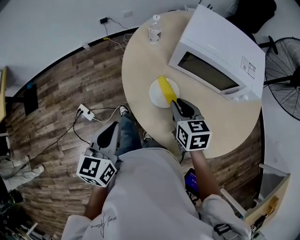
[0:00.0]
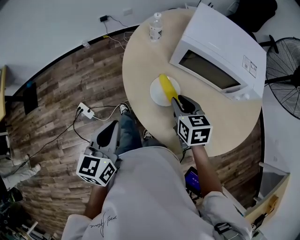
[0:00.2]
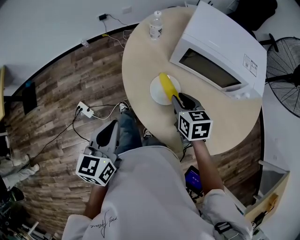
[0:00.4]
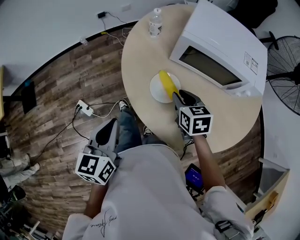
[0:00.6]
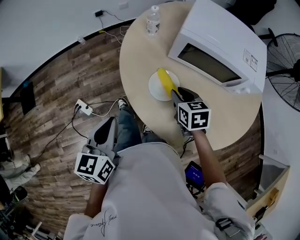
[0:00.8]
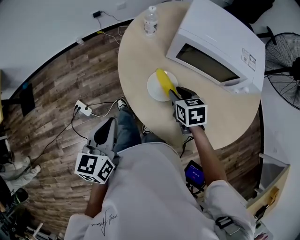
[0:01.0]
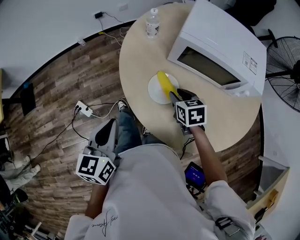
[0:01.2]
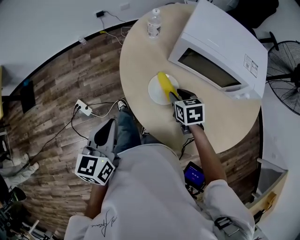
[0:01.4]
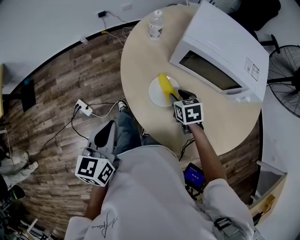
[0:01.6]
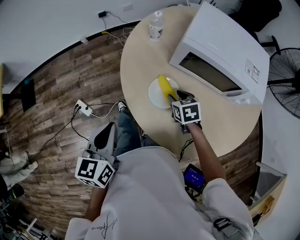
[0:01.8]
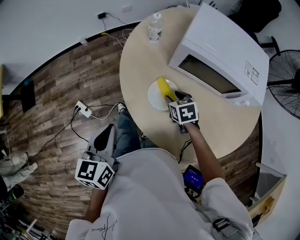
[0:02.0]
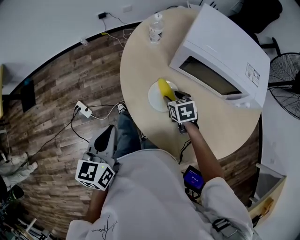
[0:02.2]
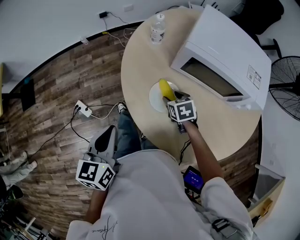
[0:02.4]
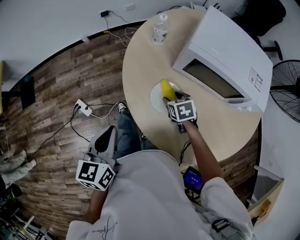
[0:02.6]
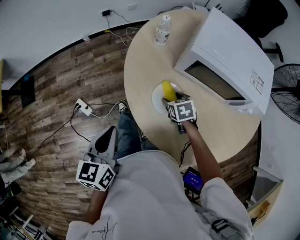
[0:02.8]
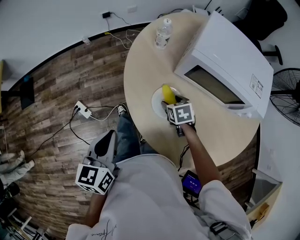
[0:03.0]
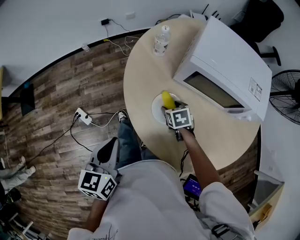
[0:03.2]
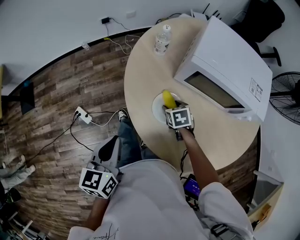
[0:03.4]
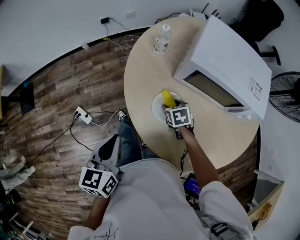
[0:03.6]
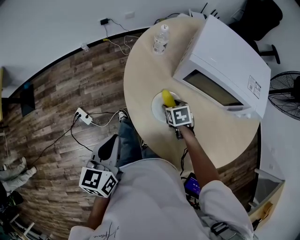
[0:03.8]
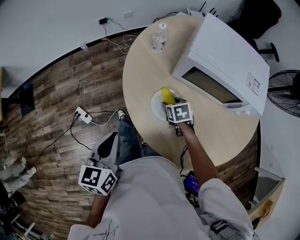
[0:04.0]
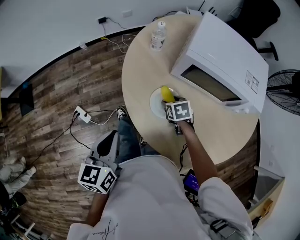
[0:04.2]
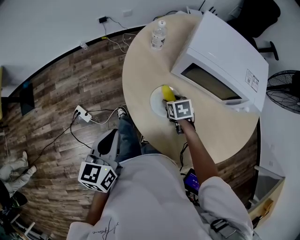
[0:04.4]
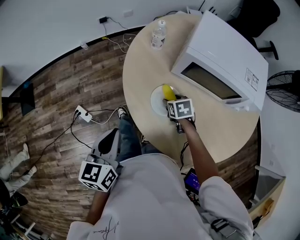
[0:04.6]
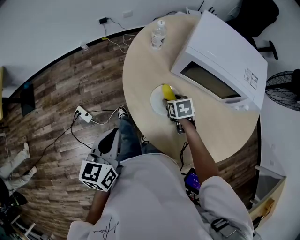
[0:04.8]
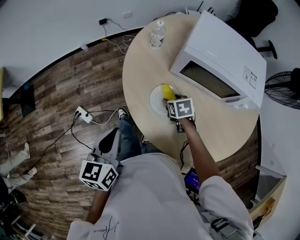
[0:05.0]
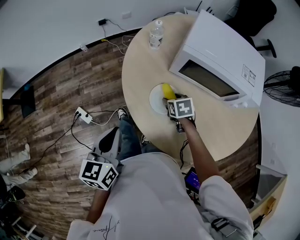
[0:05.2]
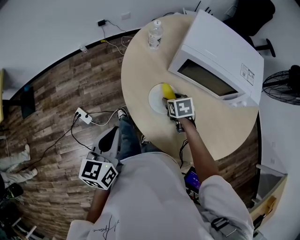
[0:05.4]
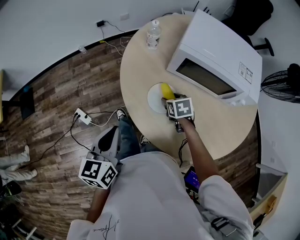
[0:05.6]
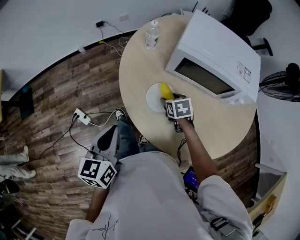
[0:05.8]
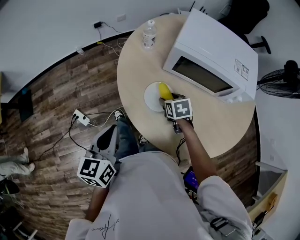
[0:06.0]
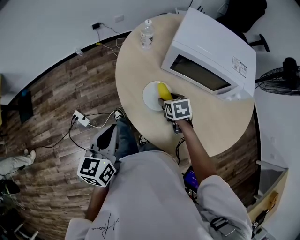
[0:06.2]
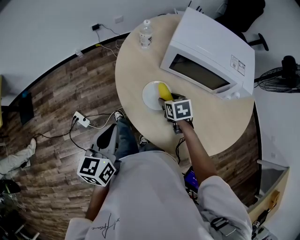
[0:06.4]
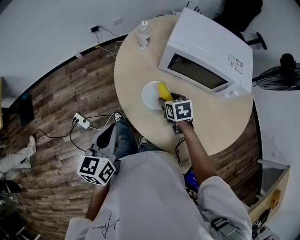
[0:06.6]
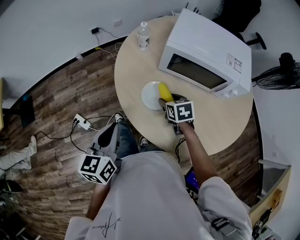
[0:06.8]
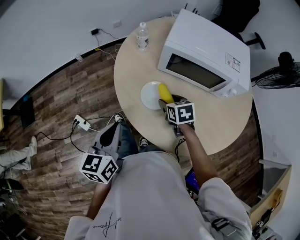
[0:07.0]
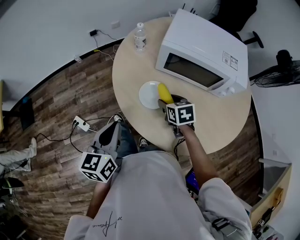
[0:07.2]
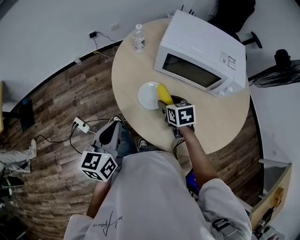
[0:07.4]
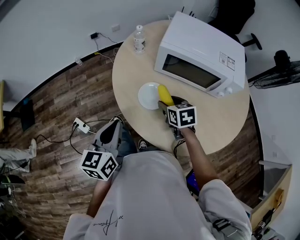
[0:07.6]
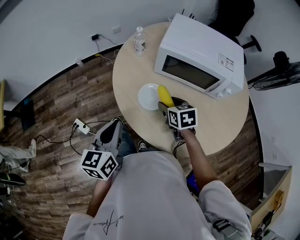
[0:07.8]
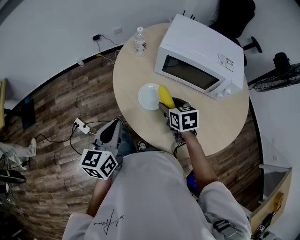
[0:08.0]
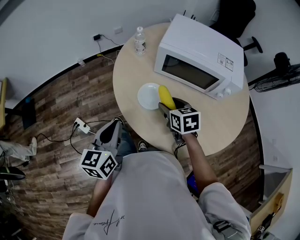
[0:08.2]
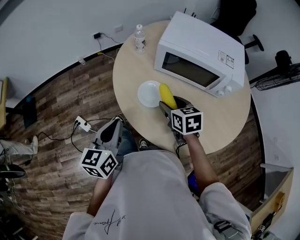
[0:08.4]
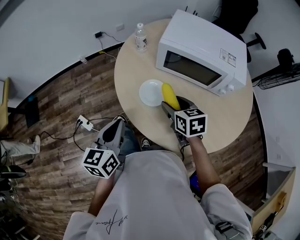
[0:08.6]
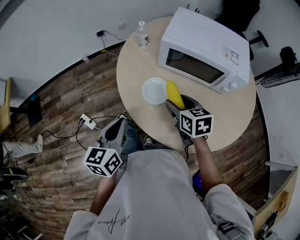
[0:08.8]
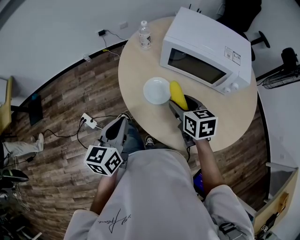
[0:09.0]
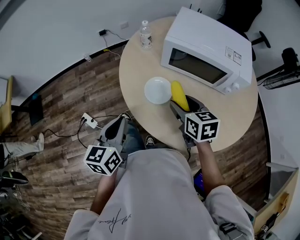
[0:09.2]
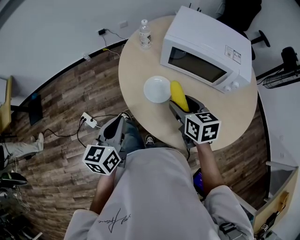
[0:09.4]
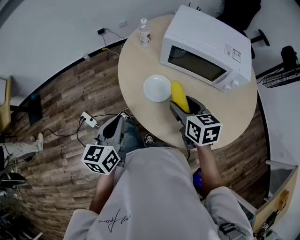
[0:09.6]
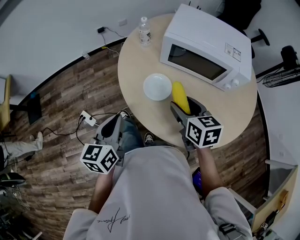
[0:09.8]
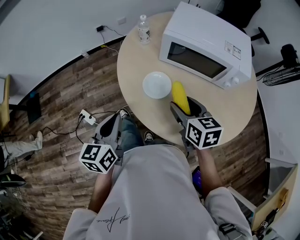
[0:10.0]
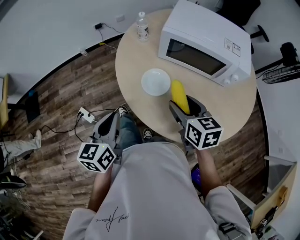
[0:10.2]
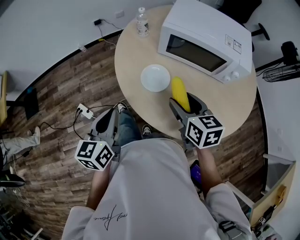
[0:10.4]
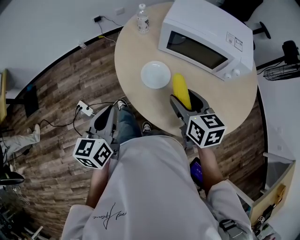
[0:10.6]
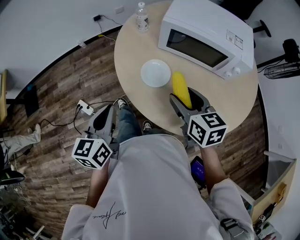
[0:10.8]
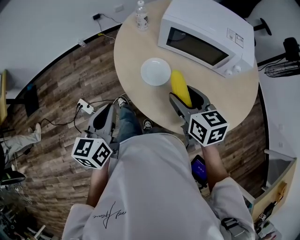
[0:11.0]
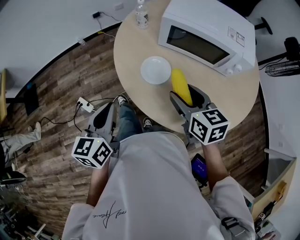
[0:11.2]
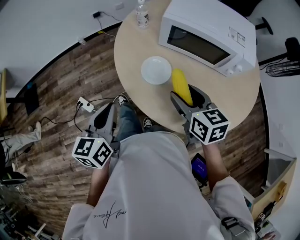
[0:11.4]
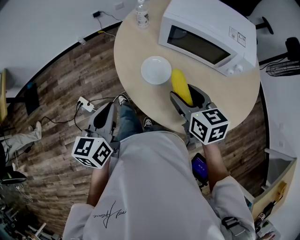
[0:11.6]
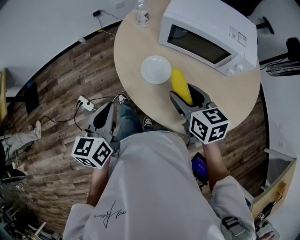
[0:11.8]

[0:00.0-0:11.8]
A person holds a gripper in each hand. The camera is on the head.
0:00.0 to 0:01.4: The right gripper shifts some 10 cm downward.
0:01.4 to 0:03.0: The right gripper shifts approximately 5 cm downward, and opens up.
0:03.0 to 0:04.4: Both grippers stay about where they are.
0:04.4 to 0:06.0: There are only small adjustments of the grippers.
0:06.0 to 0:07.4: The right gripper is displaced upward by roughly 5 cm.
0:07.4 to 0:08.8: The right gripper heads upward, covering about 5 cm.
0:08.8 to 0:10.4: The right gripper shifts about 5 cm backward.
0:10.4 to 0:11.8: Both grippers stay put.

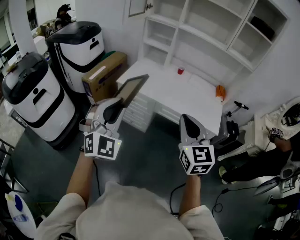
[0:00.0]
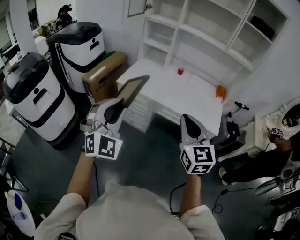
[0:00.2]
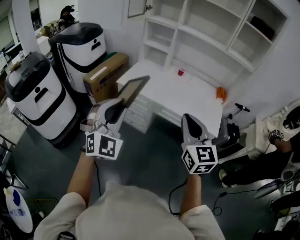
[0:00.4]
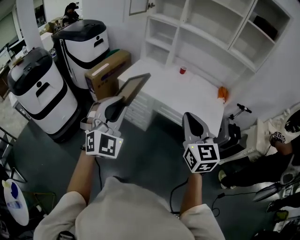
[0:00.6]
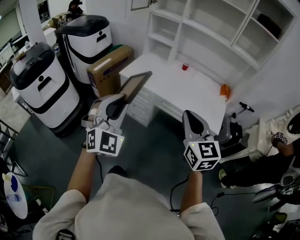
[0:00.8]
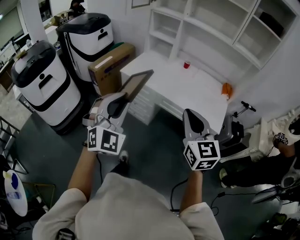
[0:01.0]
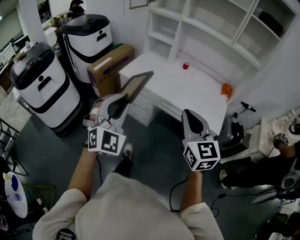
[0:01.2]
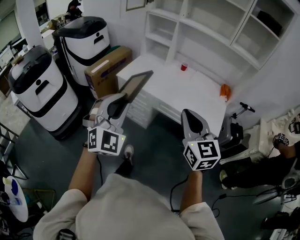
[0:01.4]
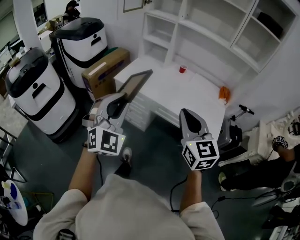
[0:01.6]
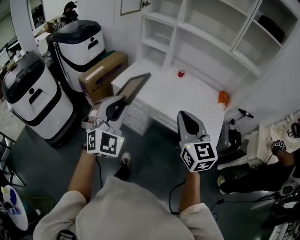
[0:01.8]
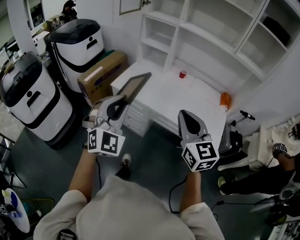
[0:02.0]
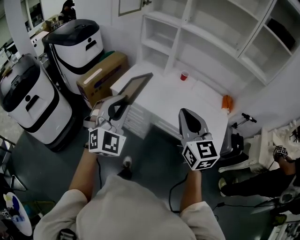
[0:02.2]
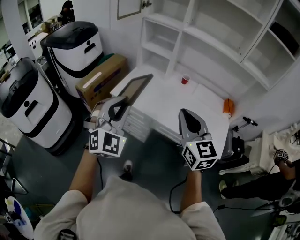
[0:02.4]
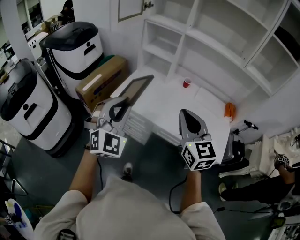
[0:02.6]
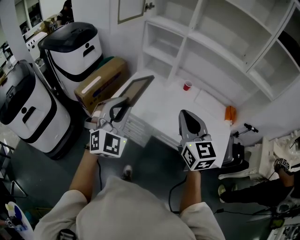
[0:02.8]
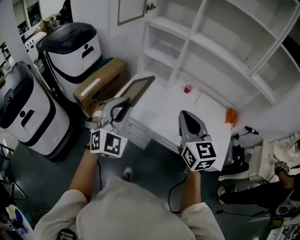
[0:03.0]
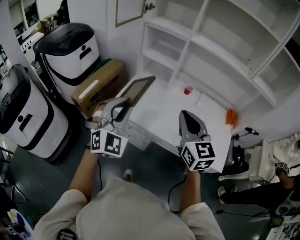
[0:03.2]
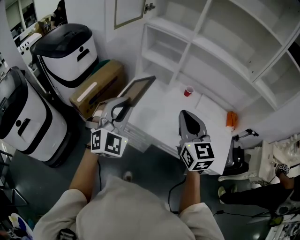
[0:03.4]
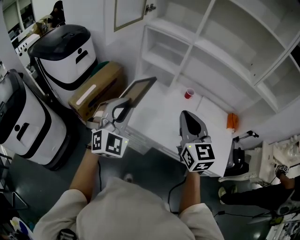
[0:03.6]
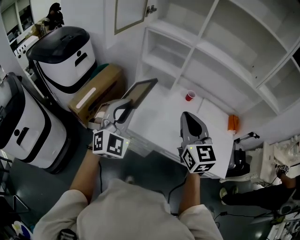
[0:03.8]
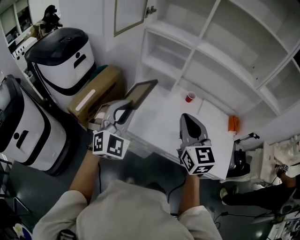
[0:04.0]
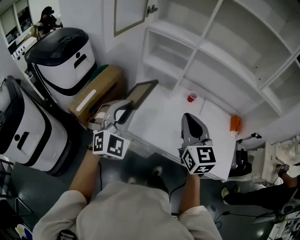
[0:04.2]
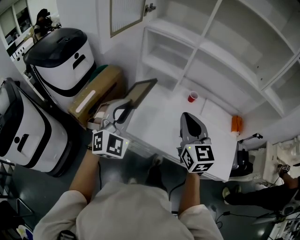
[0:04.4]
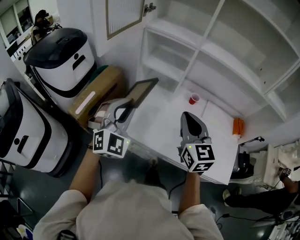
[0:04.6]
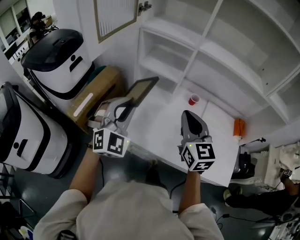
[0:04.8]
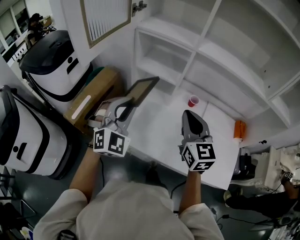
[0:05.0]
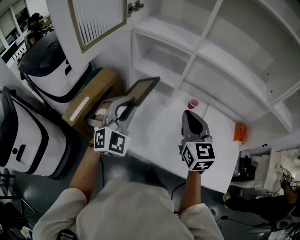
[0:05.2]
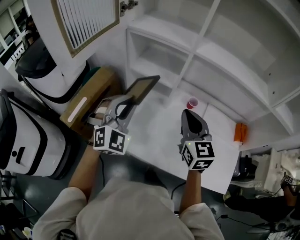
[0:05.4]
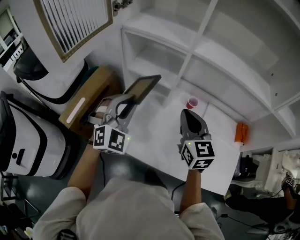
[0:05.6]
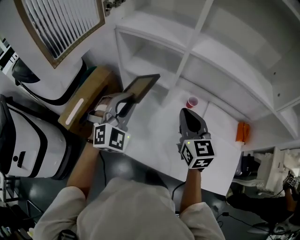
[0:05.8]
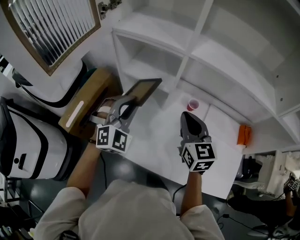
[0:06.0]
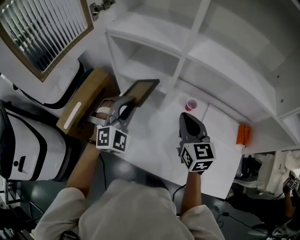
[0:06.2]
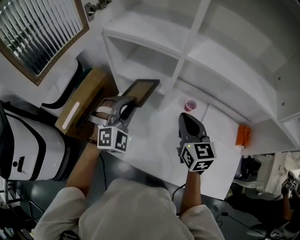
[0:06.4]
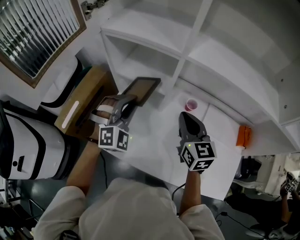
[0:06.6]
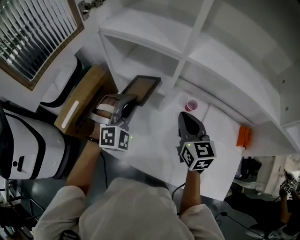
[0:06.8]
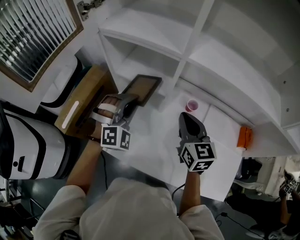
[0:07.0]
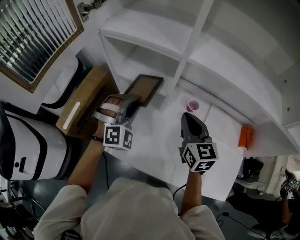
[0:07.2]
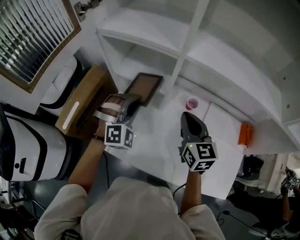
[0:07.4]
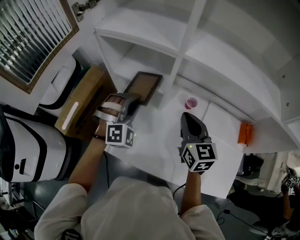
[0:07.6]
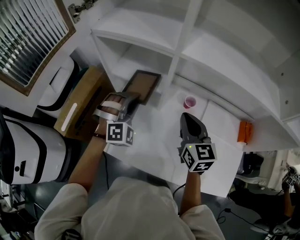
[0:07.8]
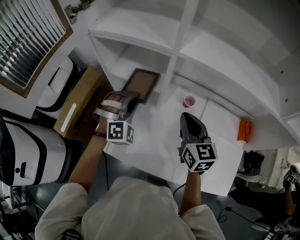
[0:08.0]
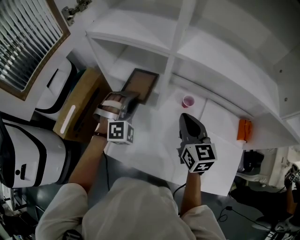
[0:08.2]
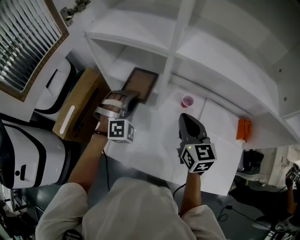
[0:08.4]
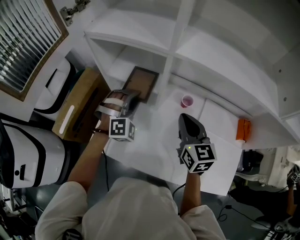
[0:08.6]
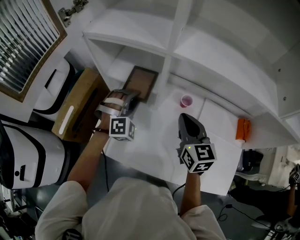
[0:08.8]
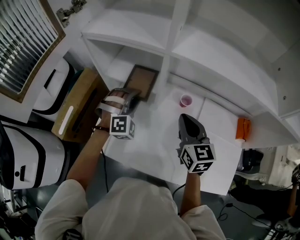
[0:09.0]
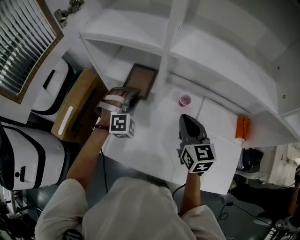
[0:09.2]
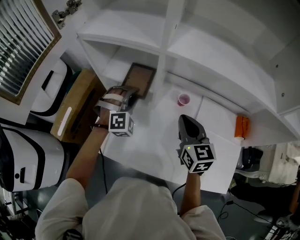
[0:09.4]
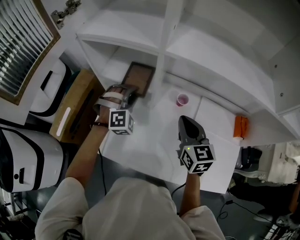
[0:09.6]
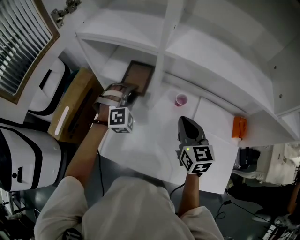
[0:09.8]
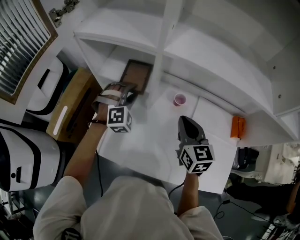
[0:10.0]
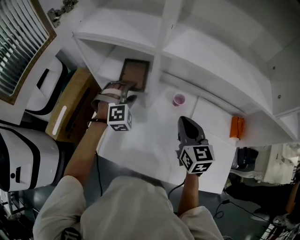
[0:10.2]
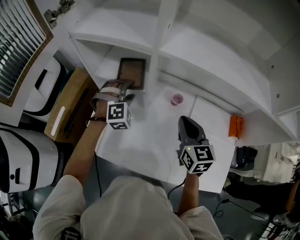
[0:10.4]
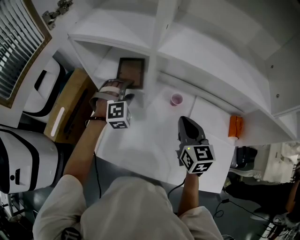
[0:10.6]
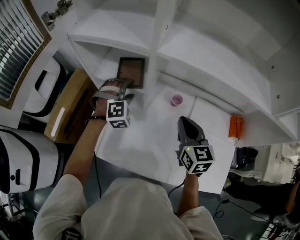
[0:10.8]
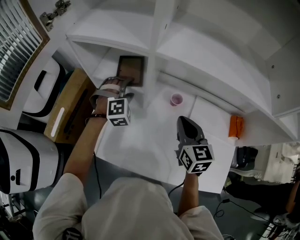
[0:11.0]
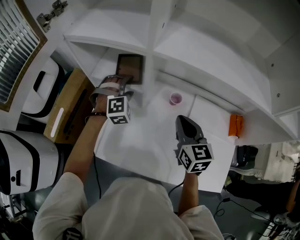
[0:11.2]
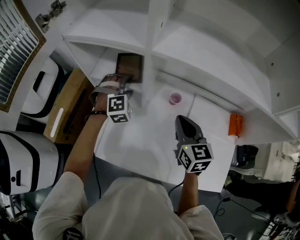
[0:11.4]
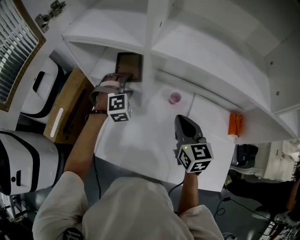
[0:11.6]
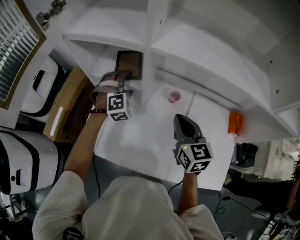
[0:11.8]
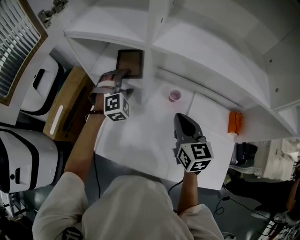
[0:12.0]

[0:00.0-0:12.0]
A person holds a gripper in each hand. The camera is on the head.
0:00.0 to 0:01.6: The right gripper moves to the right and forward, about 10 cm; the left gripper heads to the right, covering about 10 cm.
0:01.6 to 0:03.0: The two grippers go about 30 cm forward.
0:03.0 to 0:04.4: Both grippers move forward, roughly 15 cm.
0:04.4 to 0:06.0: The left gripper shifts about 25 cm forward and to the right, while the right gripper moves forward, roughly 20 cm.
0:06.0 to 0:07.6: The left gripper heads downward and forward, covering approximately 10 cm. The right gripper ends up roughly 5 cm from where it was.
0:07.6 to 0:09.0: The left gripper changes place by about 5 cm.
0:09.0 to 0:10.4: The left gripper opens.
0:10.4 to 0:12.0: There are only small adjustments of the grippers.
